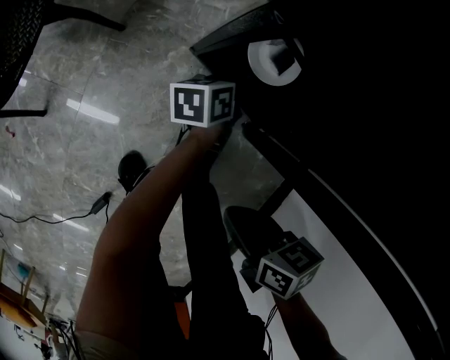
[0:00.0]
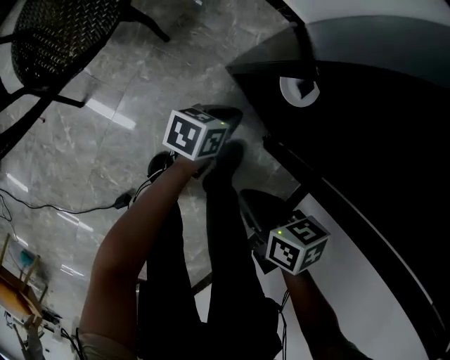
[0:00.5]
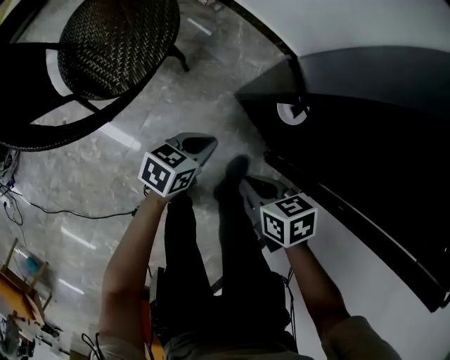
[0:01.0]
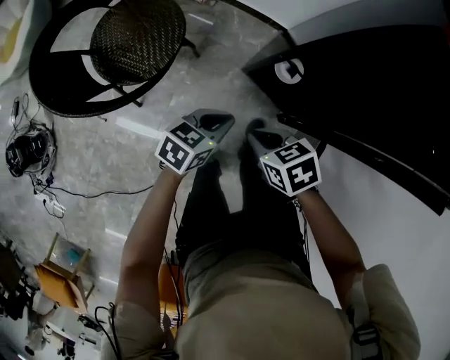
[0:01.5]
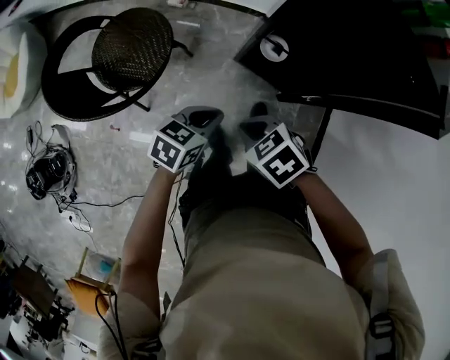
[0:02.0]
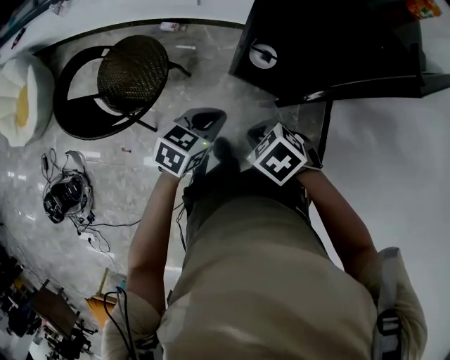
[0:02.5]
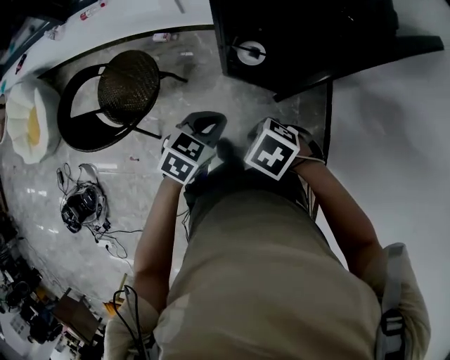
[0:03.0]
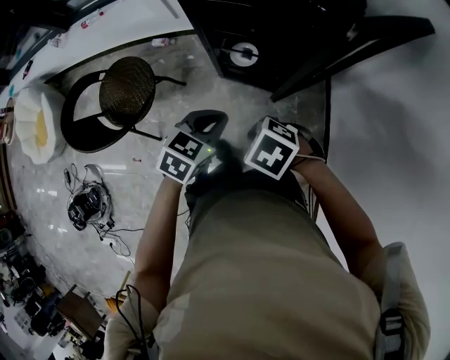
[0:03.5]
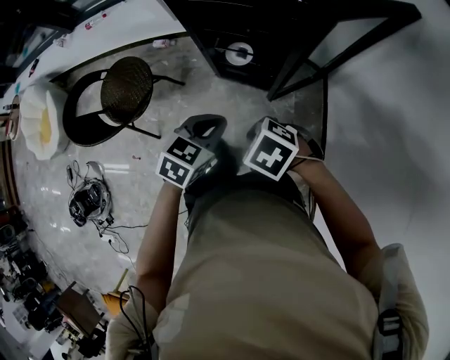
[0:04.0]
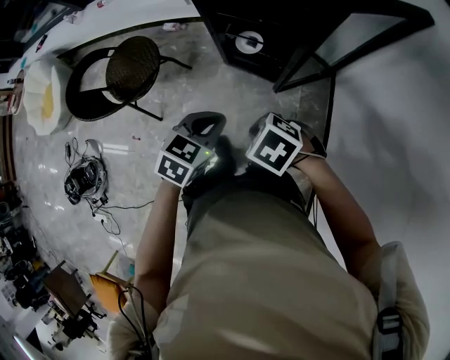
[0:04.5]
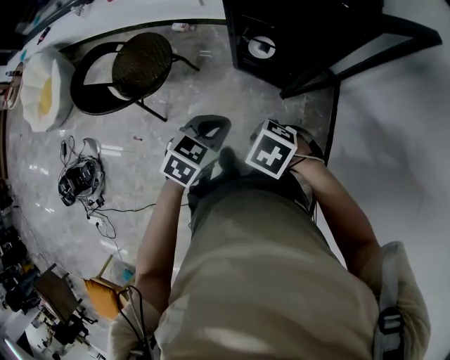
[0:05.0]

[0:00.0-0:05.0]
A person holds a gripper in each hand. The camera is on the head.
0:00.0 to 0:02.5: The right gripper heads upward, covering about 30 cm, and rotates around the line of its fingers by approximately 40 degrees, counterclockwise from behind.
0:02.5 to 0:05.0: The right gripper moves roughly 15 cm.

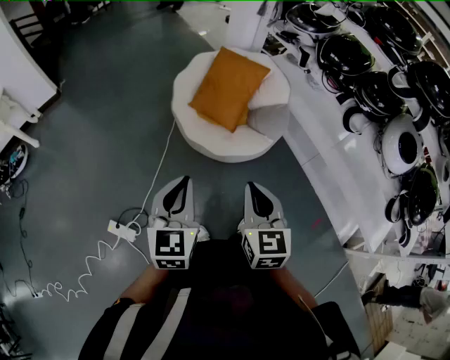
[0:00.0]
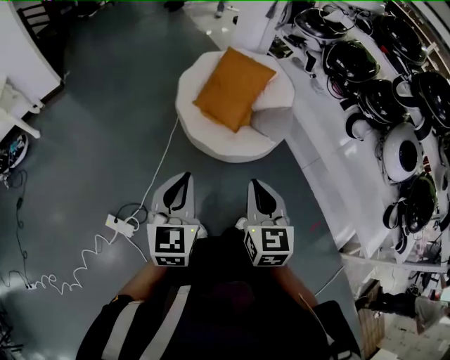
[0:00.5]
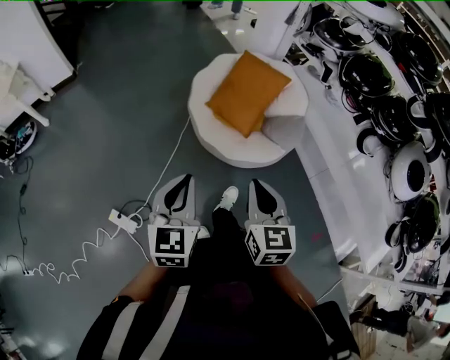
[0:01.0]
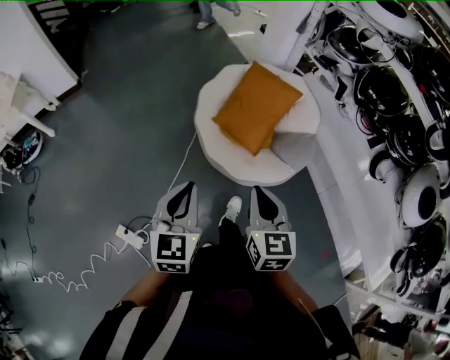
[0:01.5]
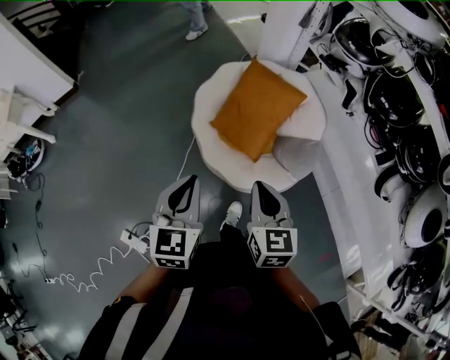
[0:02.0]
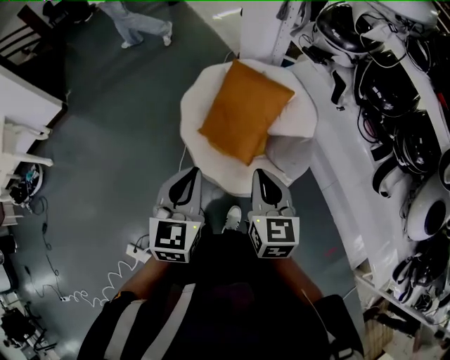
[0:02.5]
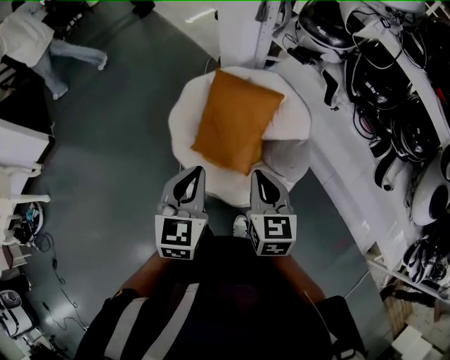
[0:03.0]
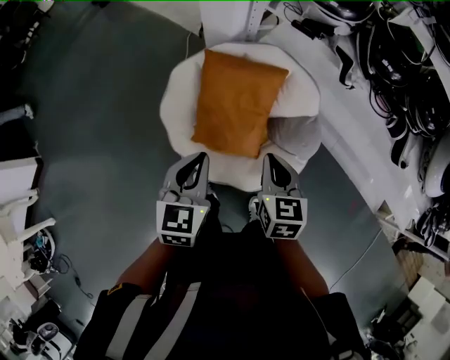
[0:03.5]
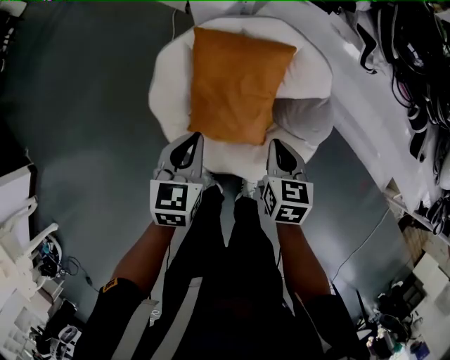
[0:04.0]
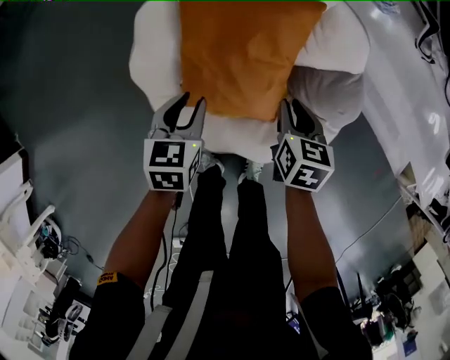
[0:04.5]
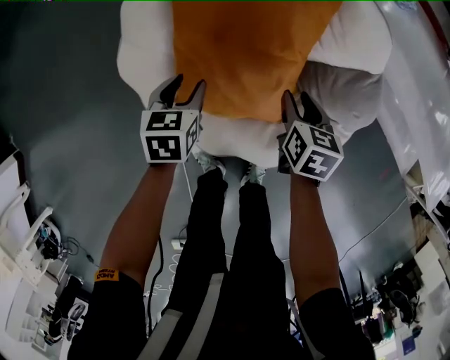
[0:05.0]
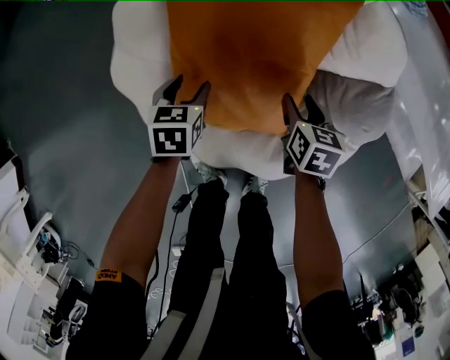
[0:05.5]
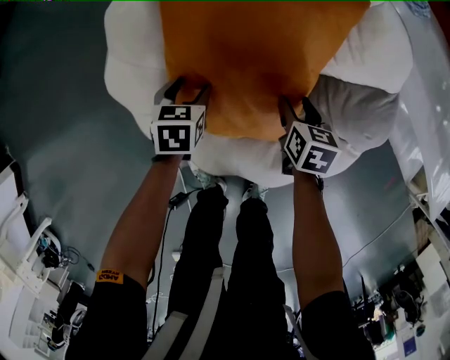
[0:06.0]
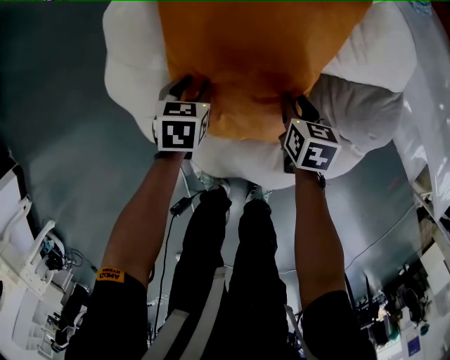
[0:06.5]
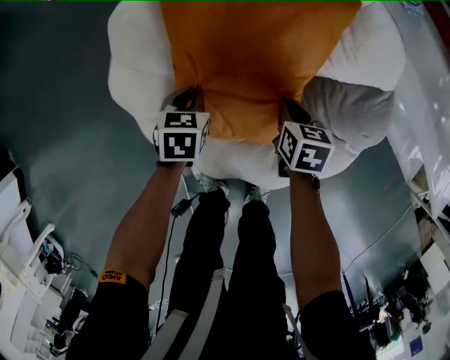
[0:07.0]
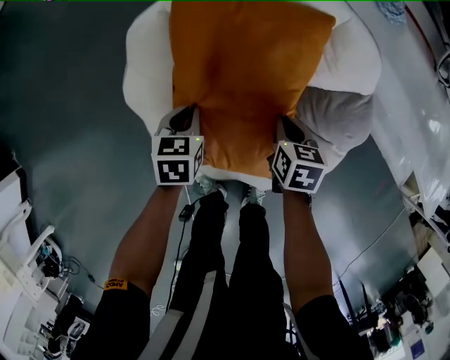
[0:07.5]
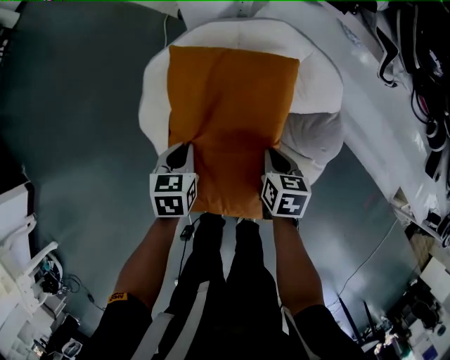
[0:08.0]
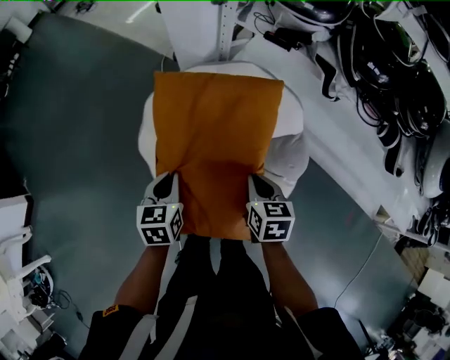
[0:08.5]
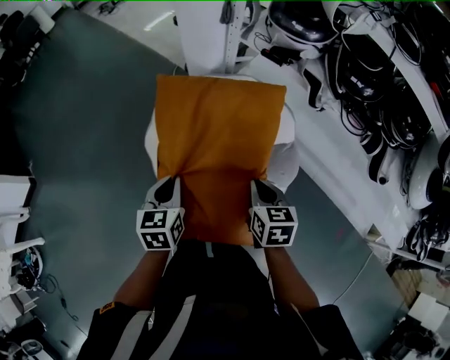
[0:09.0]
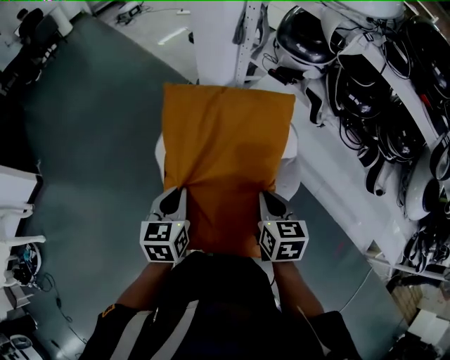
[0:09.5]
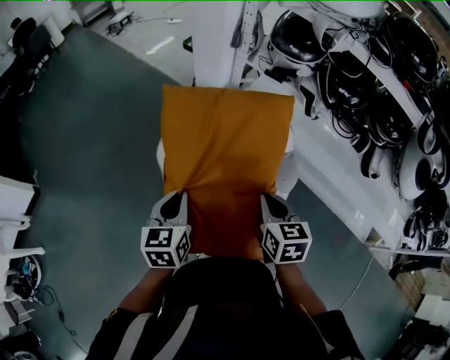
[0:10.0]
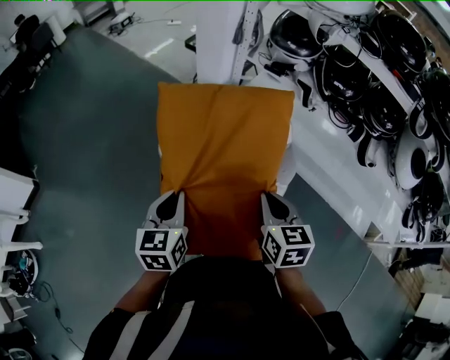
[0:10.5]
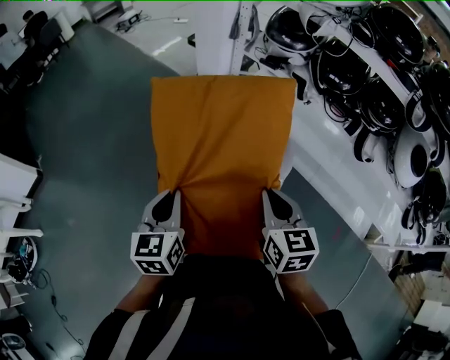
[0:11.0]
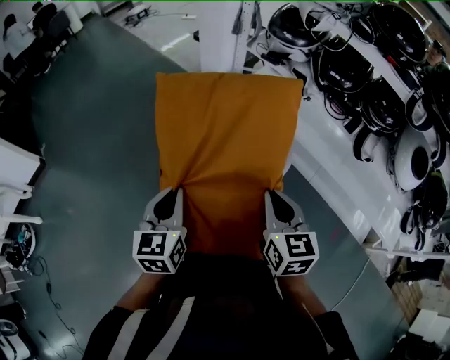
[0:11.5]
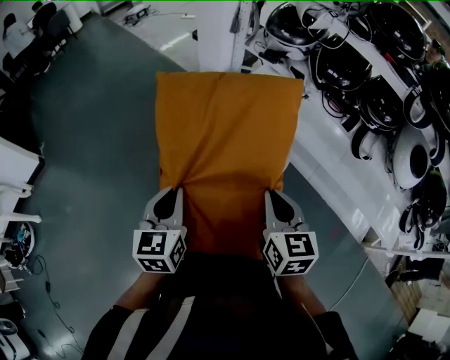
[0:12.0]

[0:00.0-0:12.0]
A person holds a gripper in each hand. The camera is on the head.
0:00.0 to 0:02.0: The grippers both shift forward by roughly 30 cm.
0:02.0 to 0:04.0: The left gripper changes place by roughly 40 cm, and rotates roughly 40 degrees. The right gripper ends up about 35 cm from where it was, and swivels some 40 degrees.
0:04.0 to 0:06.0: Both grippers move downward, about 40 cm. The right gripper opens its fingers. The left gripper changes its angle by about 20 degrees, and opens.
0:06.0 to 0:08.0: Both grippers travel together upward, approximately 25 cm. The left gripper closes. The right gripper closes its fingers.
0:08.0 to 0:10.0: The grippers both shift upward and backward by about 40 cm. The left gripper rotates about 20 degrees.
0:10.0 to 0:12.0: The left gripper is displaced backward and to the right by some 20 cm; the right gripper travels backward, to the right and upward by some 20 cm.

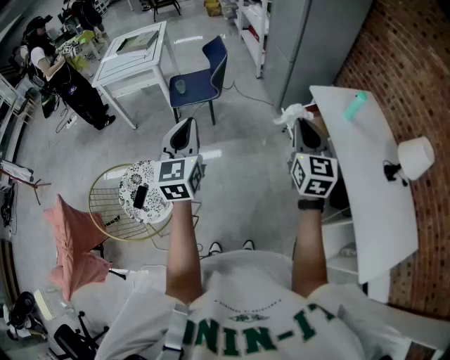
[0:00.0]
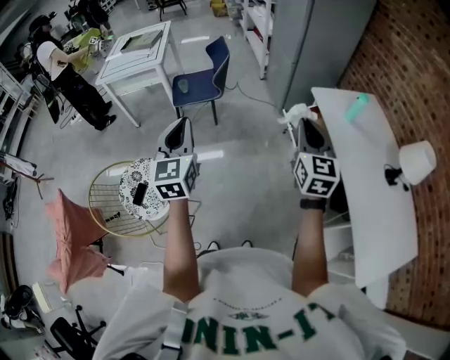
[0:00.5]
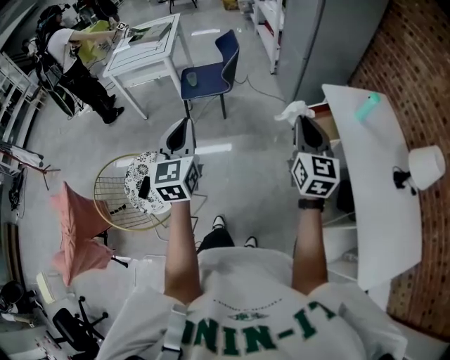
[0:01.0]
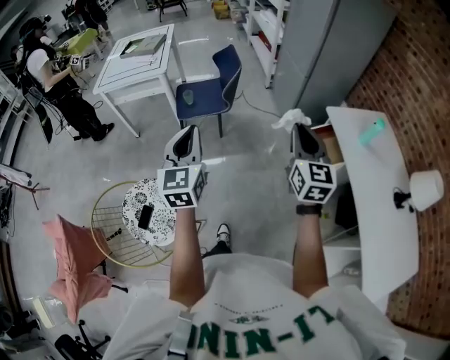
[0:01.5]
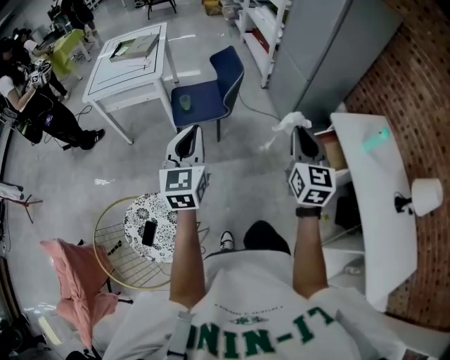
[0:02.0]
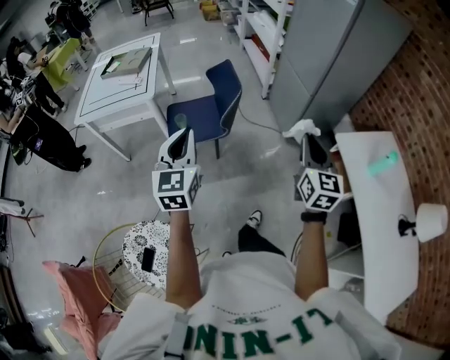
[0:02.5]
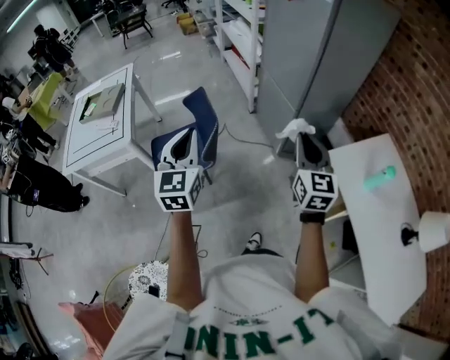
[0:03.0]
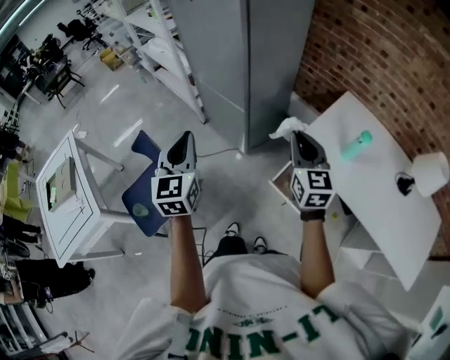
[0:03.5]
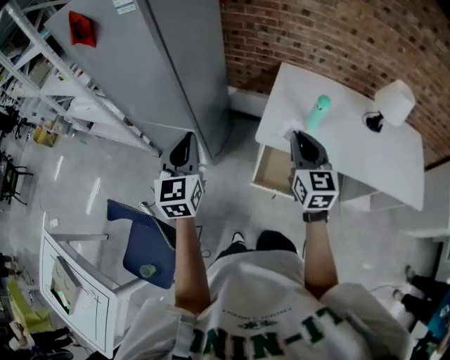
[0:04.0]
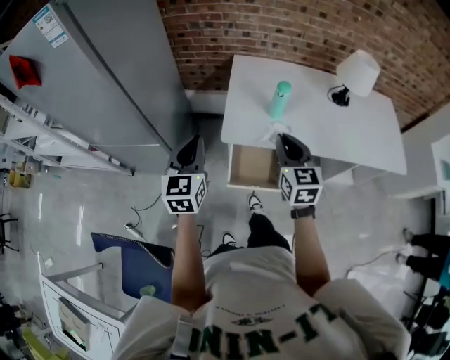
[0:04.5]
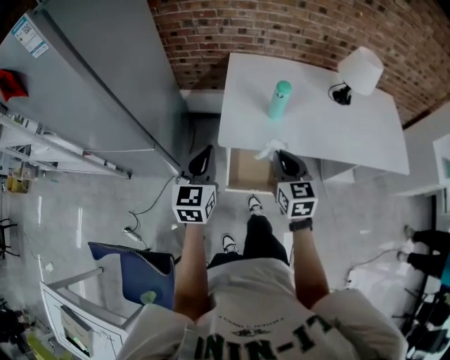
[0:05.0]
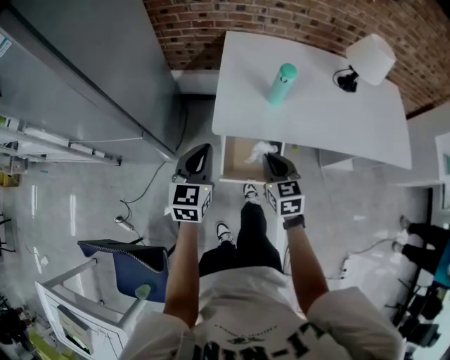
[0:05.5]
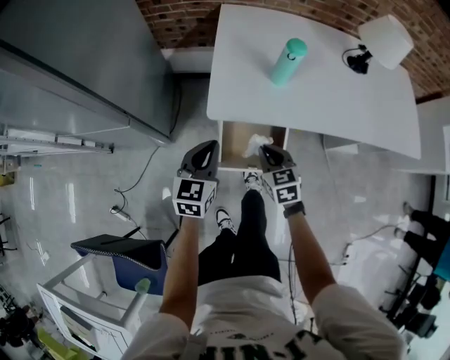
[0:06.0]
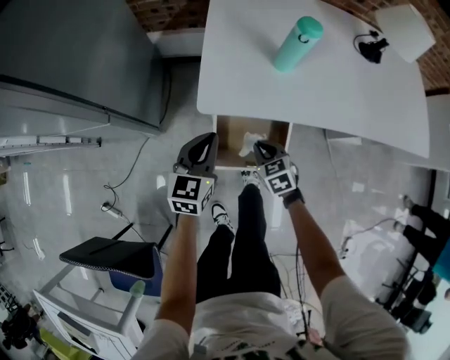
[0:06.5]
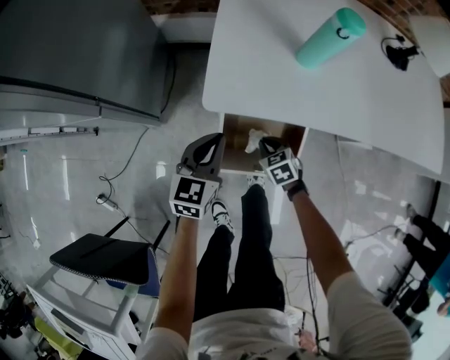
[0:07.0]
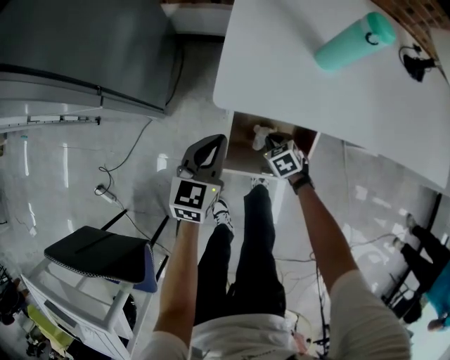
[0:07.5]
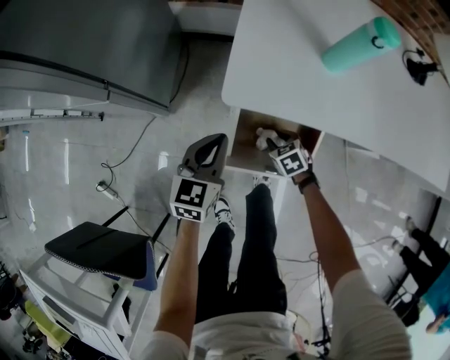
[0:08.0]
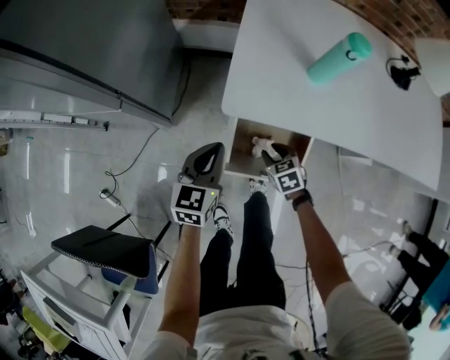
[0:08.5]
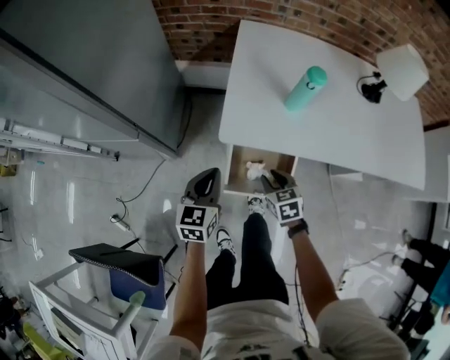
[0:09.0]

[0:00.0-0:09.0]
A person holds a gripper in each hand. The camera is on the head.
0:00.0 to 0:02.0: The grippers both shift forward and to the left by about 25 cm.
0:02.0 to 0:04.5: The two grippers travel together, approximately 60 cm. The right gripper changes its angle by approximately 70 degrees; the left gripper rotates some 80 degrees.
0:04.5 to 0:07.0: The two grippers go some 40 cm downward. The right gripper angles its fingers downward, by approximately 40 degrees. The left gripper turns by approximately 20 degrees.
0:07.0 to 0:09.0: The left gripper shifts roughly 10 cm upward. Meanwhile the right gripper goes approximately 20 cm upward, and opens up.

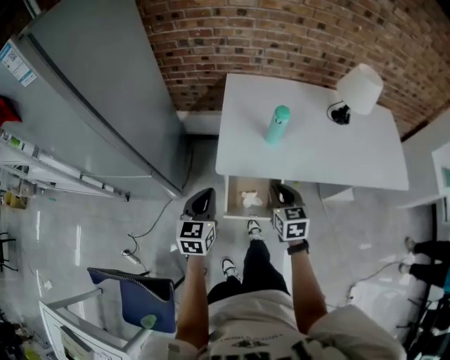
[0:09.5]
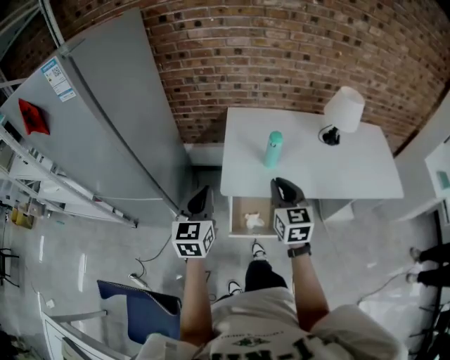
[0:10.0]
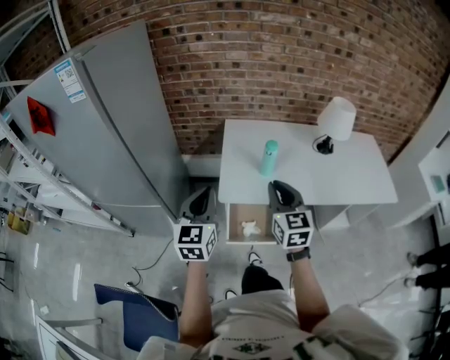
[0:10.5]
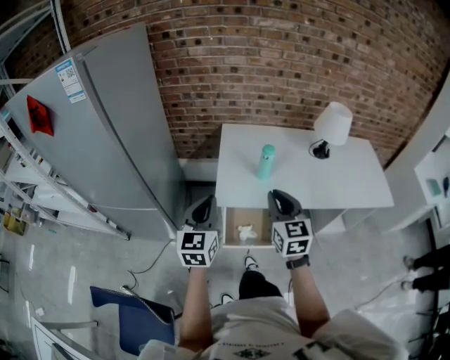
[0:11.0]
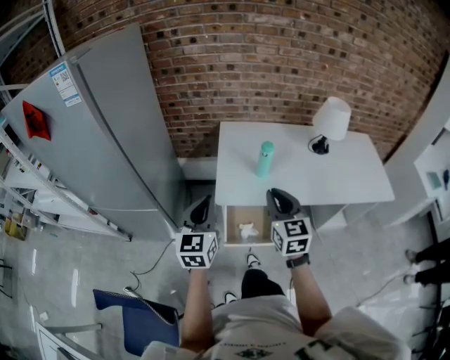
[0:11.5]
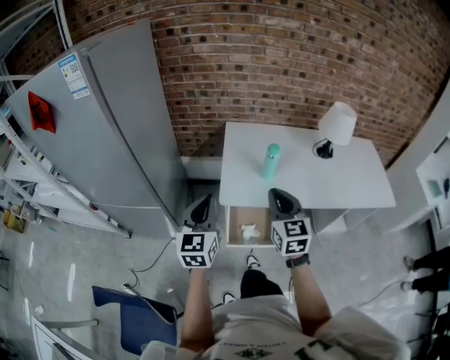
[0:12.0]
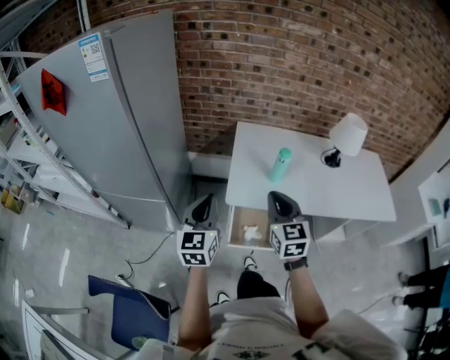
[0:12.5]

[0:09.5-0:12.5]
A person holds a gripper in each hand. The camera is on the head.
0:09.5 to 0:11.0: The two grippers go about 20 cm upward. The right gripper changes its angle by about 20 degrees.
0:11.0 to 0:12.5: The two grippers go approximately 5 cm to the left.
